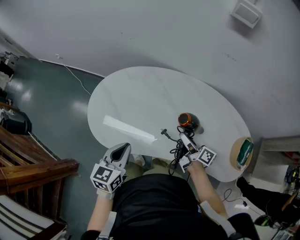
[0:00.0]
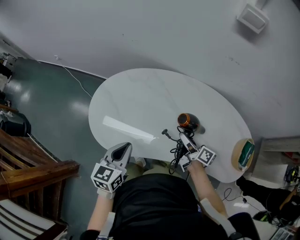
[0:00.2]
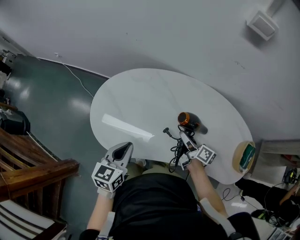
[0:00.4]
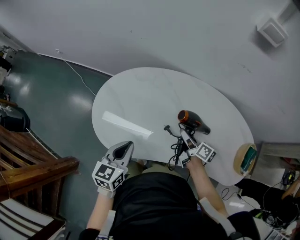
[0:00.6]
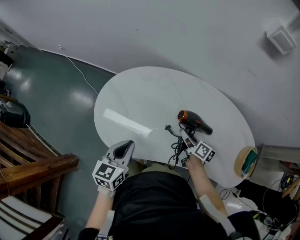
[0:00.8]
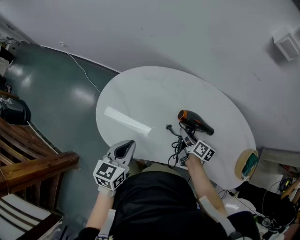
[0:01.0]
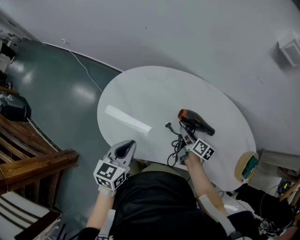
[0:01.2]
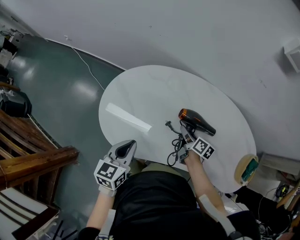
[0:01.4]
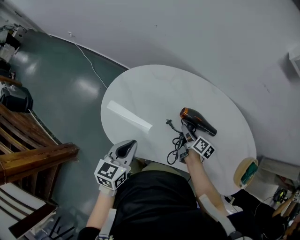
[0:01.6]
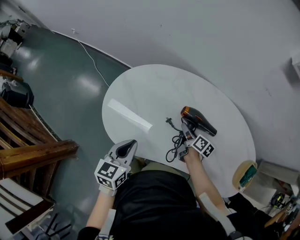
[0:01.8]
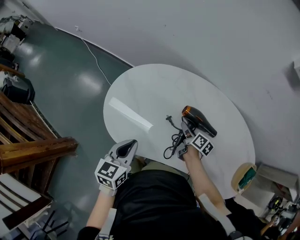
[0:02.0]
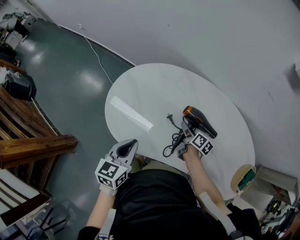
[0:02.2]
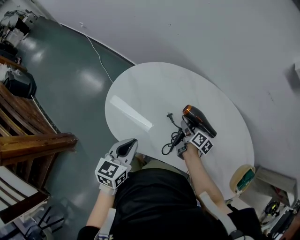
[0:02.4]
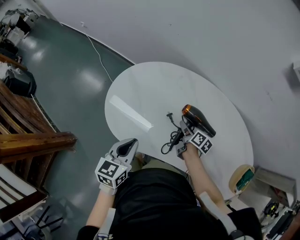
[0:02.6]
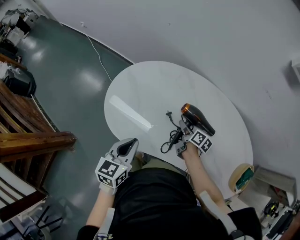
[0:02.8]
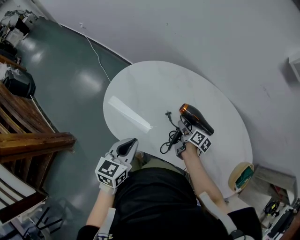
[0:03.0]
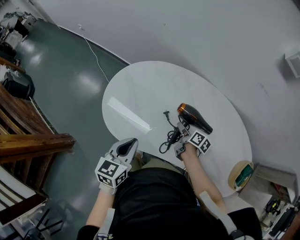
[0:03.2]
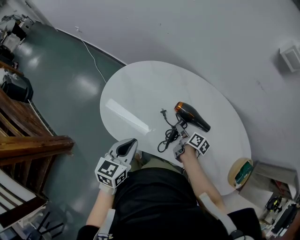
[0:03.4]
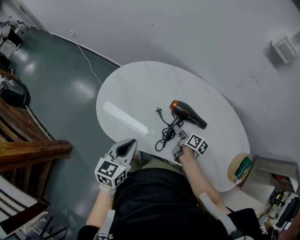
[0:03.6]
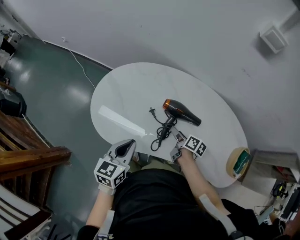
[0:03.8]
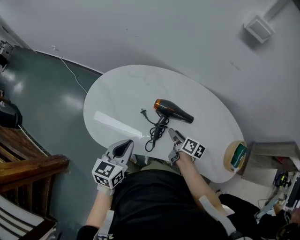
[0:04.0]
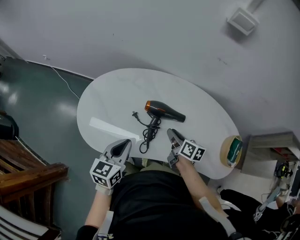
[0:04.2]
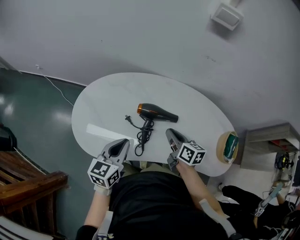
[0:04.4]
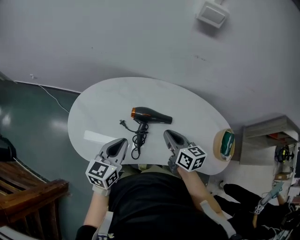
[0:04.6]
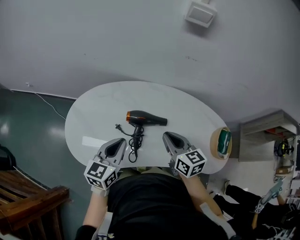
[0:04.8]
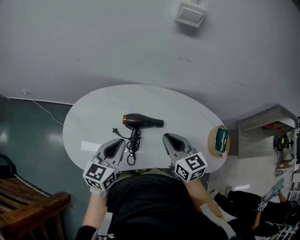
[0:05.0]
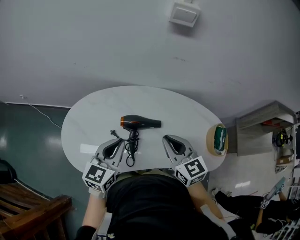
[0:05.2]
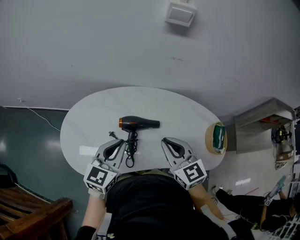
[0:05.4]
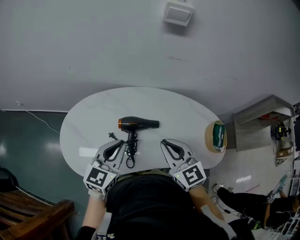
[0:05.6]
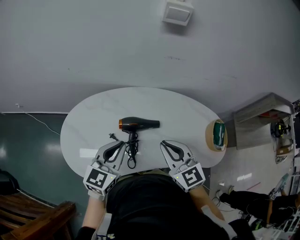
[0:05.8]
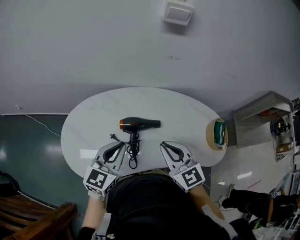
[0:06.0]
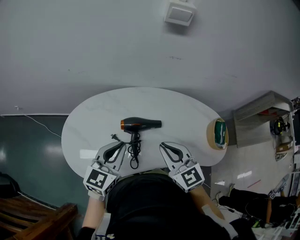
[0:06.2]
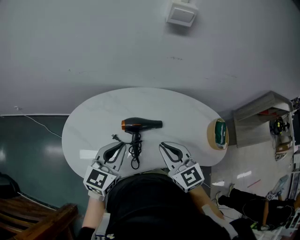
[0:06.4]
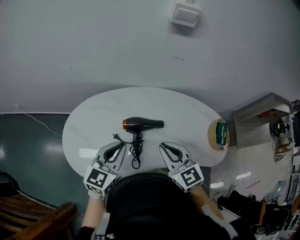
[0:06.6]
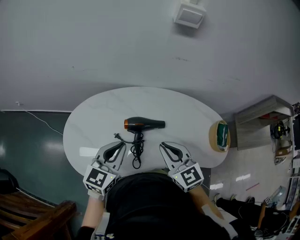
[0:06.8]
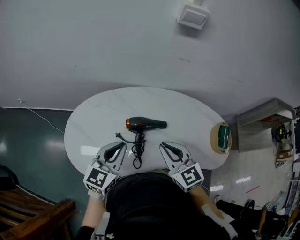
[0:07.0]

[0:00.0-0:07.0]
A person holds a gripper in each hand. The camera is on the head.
0:00.0 to 0:01.4: The right gripper travels downward, forward and to the left by roughly 15 cm, and swivels some 30 degrees. Meanwhile the left gripper travels to the left and forward by about 10 cm.
0:01.4 to 0:02.8: There are only small adjustments of the grippers.
0:02.8 to 0:04.2: The right gripper is displaced upward, backward and to the right by approximately 15 cm, and closes its fingers; the left gripper shifts about 10 cm to the right.
0:04.2 to 0:05.6: The right gripper heads upward, covering about 20 cm, and rolls counterclockwise, seen from behind, by about 50 degrees, while the left gripper moves upward, to the right and forward, about 15 cm, and rotates some 30 degrees.
0:05.6 to 0:07.0: The grippers stay close to where they were, moving slightly.

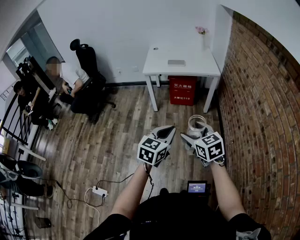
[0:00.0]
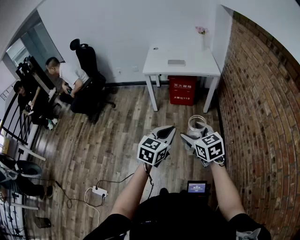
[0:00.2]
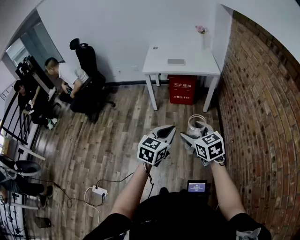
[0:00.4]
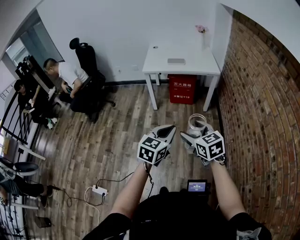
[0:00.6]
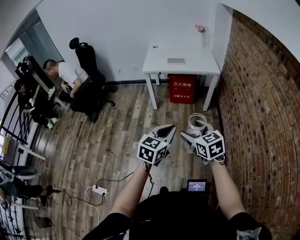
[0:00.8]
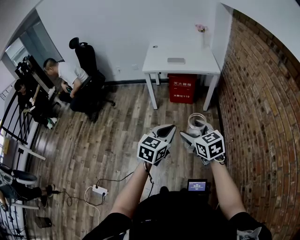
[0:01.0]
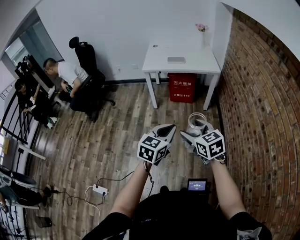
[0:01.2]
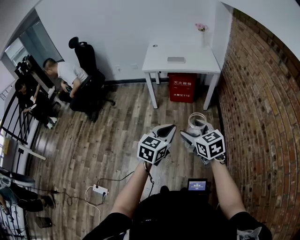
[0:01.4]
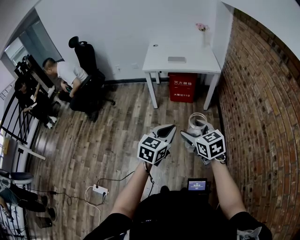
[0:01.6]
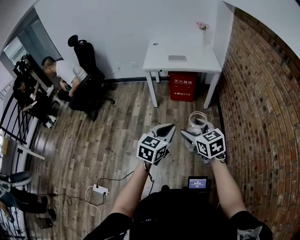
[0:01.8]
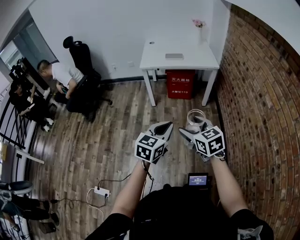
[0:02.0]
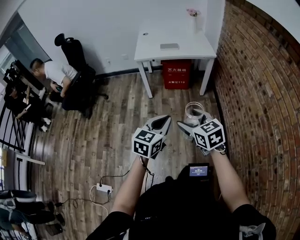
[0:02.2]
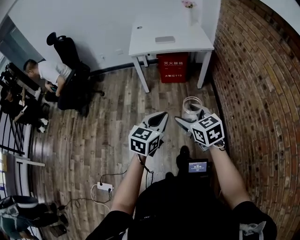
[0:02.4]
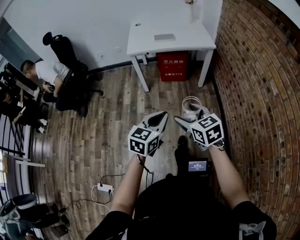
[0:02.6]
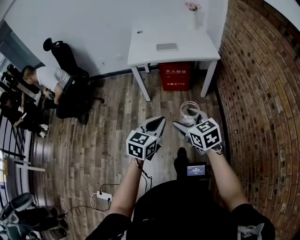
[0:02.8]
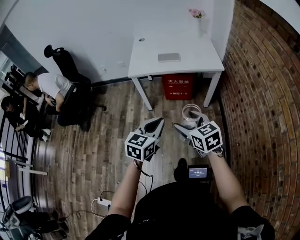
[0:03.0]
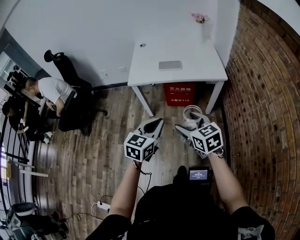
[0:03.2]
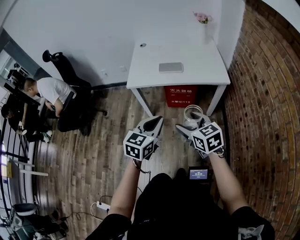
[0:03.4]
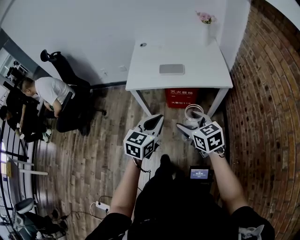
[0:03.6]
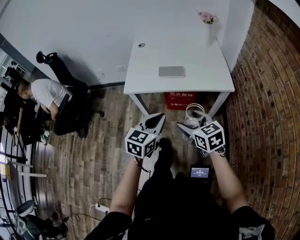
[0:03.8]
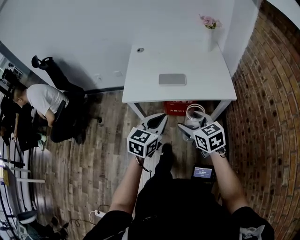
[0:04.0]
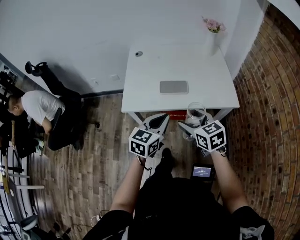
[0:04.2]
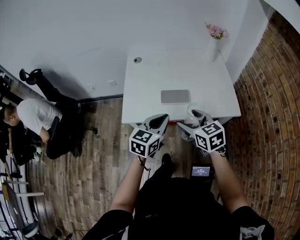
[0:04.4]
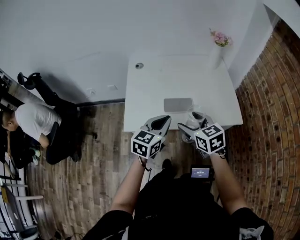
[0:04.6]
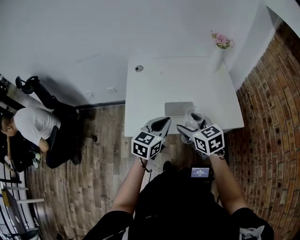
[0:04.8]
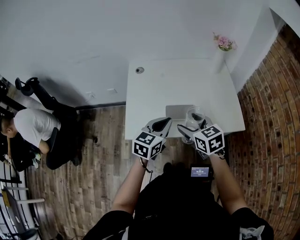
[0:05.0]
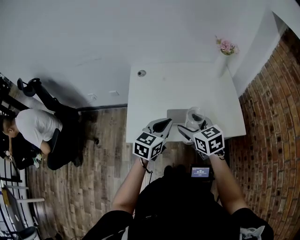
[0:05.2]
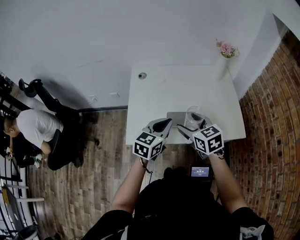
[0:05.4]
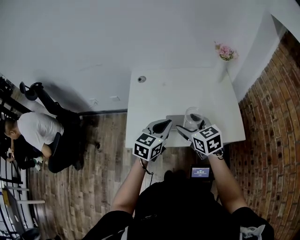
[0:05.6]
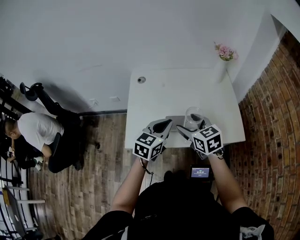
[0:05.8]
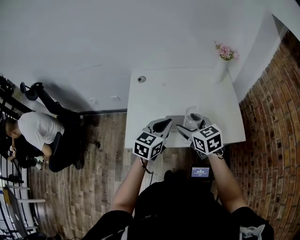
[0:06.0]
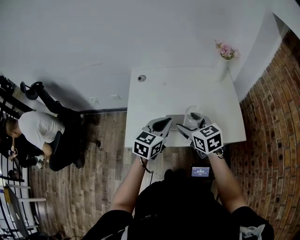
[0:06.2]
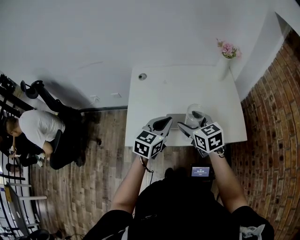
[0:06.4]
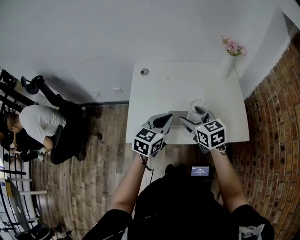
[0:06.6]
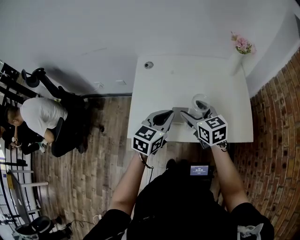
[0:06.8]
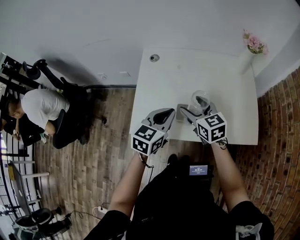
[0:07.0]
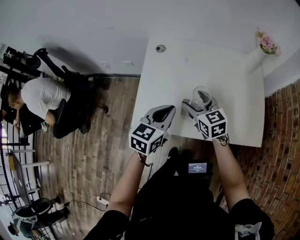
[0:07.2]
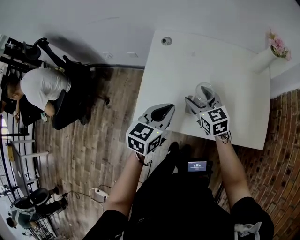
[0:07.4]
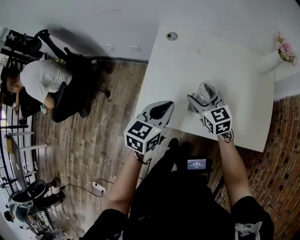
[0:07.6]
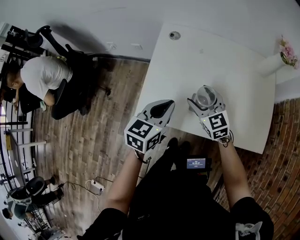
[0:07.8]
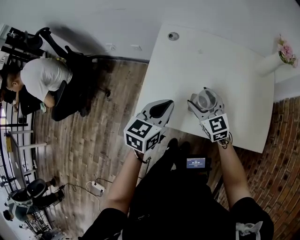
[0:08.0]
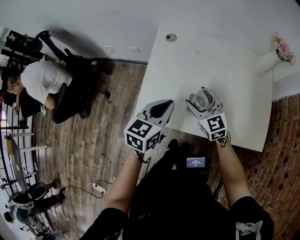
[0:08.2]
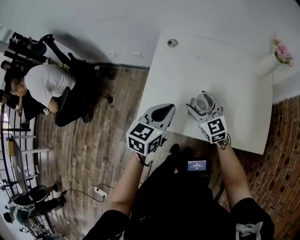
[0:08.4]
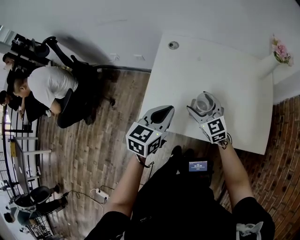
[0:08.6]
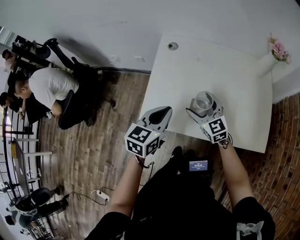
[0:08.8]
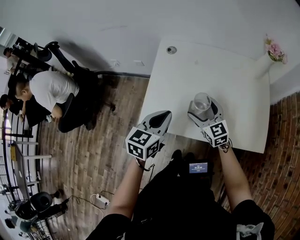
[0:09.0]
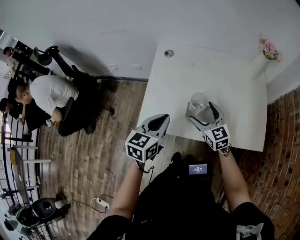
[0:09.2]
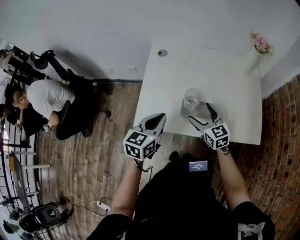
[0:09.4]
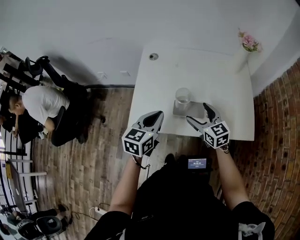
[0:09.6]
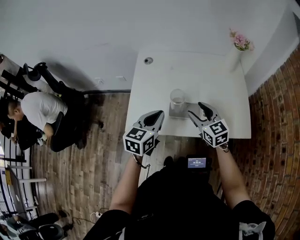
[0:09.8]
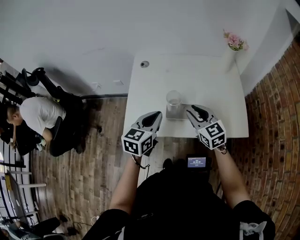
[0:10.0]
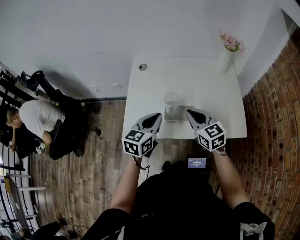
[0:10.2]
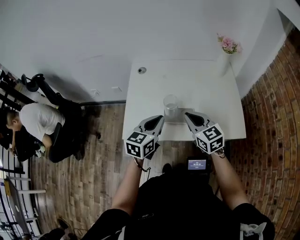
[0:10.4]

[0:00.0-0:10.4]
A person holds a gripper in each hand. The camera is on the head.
0:00.0 to 0:01.4: The two grippers keep their place.
0:01.4 to 0:03.0: The two grippers go roughly 25 cm forward.
0:03.0 to 0:04.4: Both grippers are carried forward, approximately 40 cm.
0:04.4 to 0:06.0: The two grippers go roughly 15 cm forward.
0:06.0 to 0:07.4: The left gripper shifts approximately 10 cm to the left and downward. Meanwhile the right gripper goes roughly 15 cm downward, forward and to the left.
0:07.4 to 0:09.0: The grippers move only a little.
0:09.0 to 0:10.4: The left gripper heads to the right, covering some 5 cm. Meanwhile the right gripper travels upward, backward and to the right by roughly 15 cm, and closes its fingers.

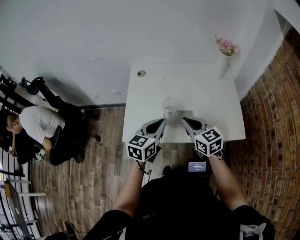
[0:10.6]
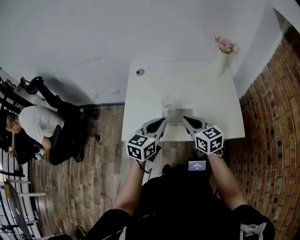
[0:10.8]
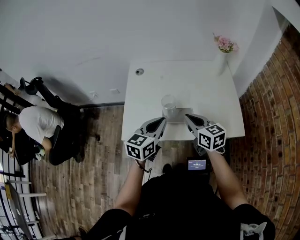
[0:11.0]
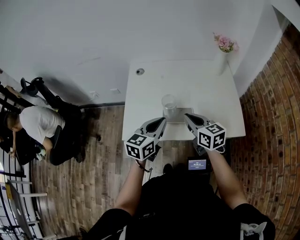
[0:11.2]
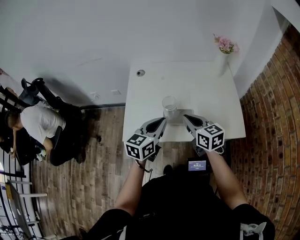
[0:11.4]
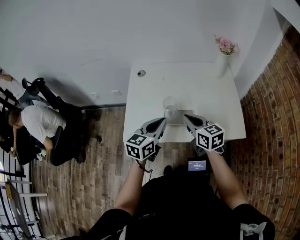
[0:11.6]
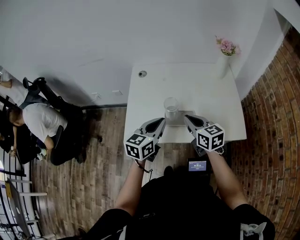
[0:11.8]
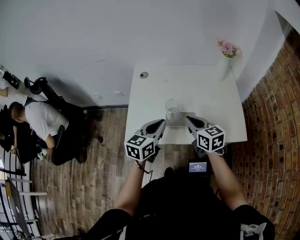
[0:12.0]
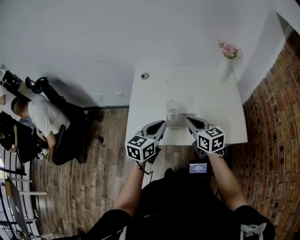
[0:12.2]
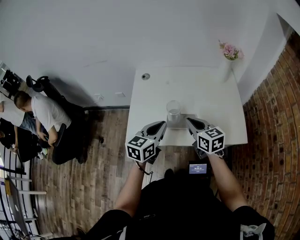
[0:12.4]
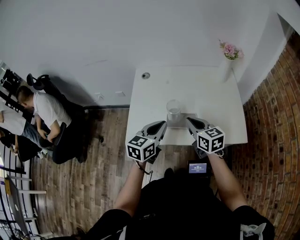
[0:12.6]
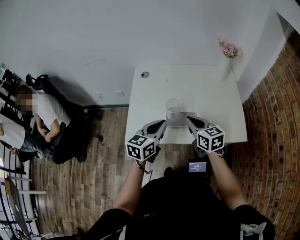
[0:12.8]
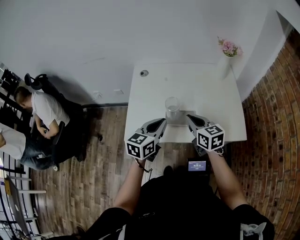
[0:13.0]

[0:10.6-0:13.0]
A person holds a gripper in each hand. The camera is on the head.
0:10.6 to 0:11.8: The grippers make only small movements.
0:11.8 to 0:13.0: The two grippers keep their place.

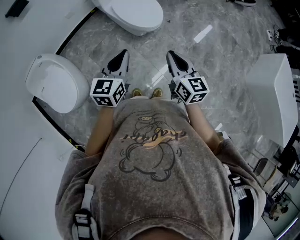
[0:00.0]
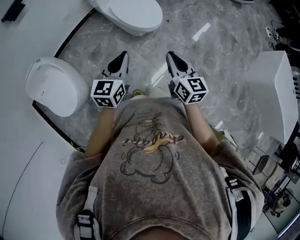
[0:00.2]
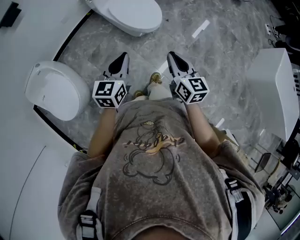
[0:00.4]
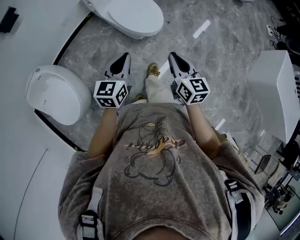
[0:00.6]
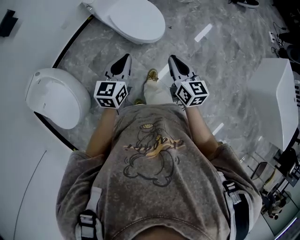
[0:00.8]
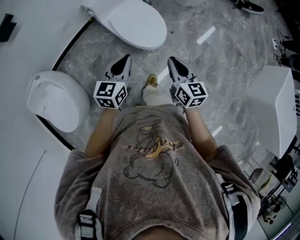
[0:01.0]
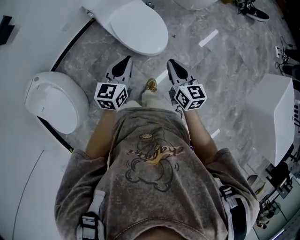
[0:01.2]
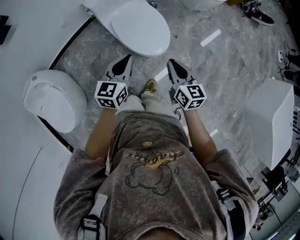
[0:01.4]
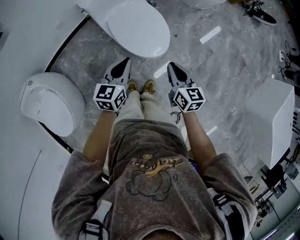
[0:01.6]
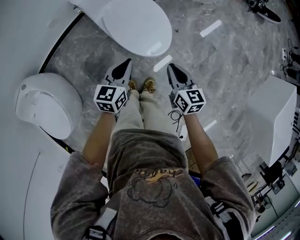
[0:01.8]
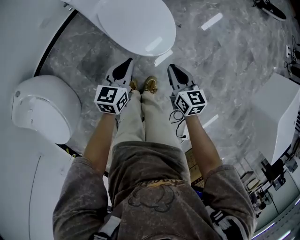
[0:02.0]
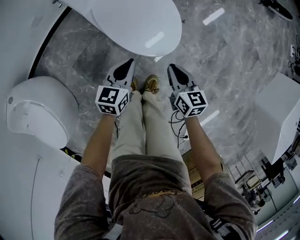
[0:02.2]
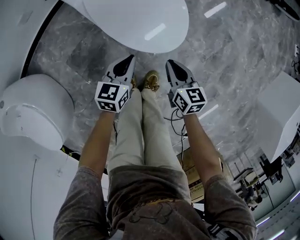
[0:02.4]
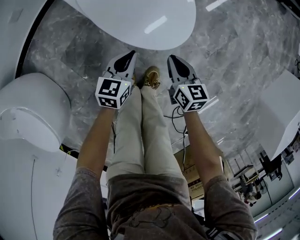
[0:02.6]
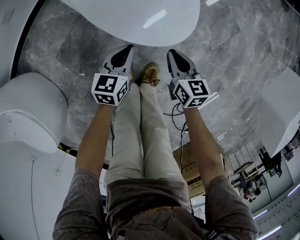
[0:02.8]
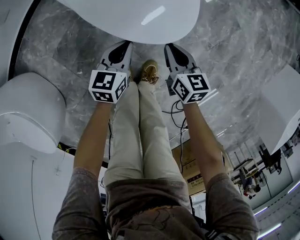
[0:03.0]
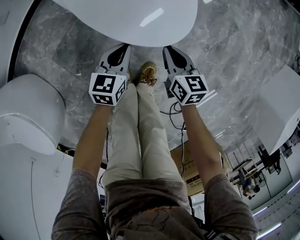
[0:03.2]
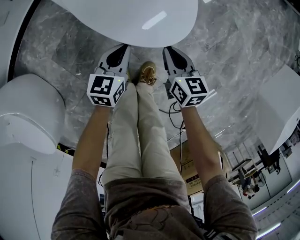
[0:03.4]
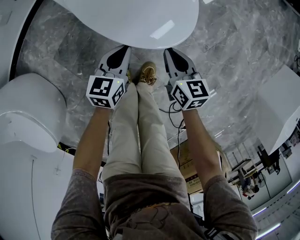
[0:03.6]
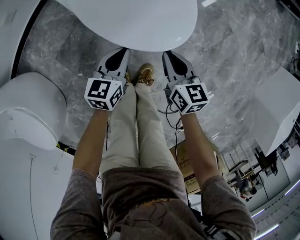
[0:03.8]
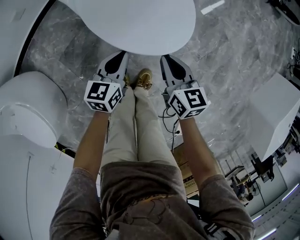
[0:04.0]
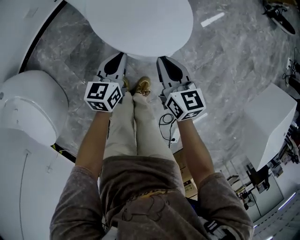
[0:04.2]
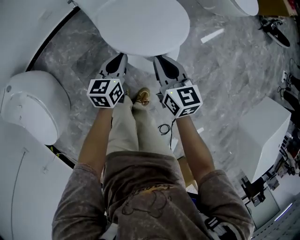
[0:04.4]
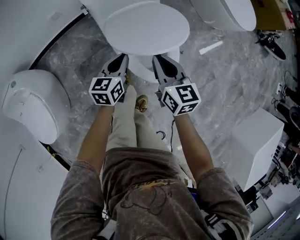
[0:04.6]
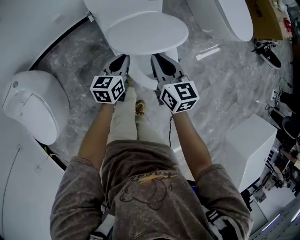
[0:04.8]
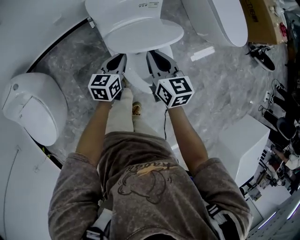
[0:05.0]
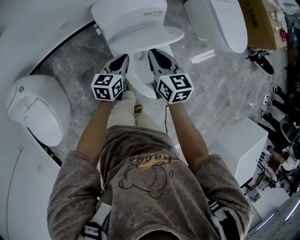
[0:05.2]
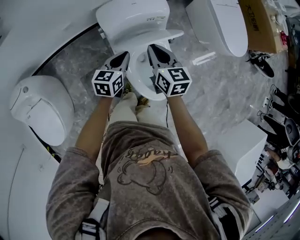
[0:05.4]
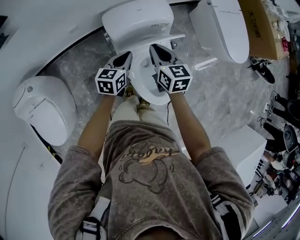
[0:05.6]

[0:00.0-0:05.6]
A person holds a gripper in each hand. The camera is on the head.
0:00.0 to 0:01.4: Both grippers travel together forward, roughly 30 cm.
0:01.4 to 0:02.8: Both grippers move downward, about 40 cm.
0:02.8 to 0:04.2: The grippers both shift upward by approximately 20 cm.
0:04.2 to 0:05.6: The two grippers go approximately 35 cm forward, upward and to the left.
